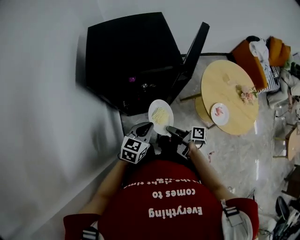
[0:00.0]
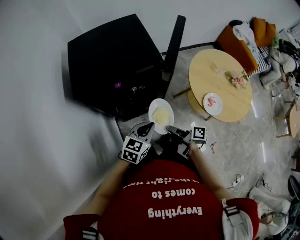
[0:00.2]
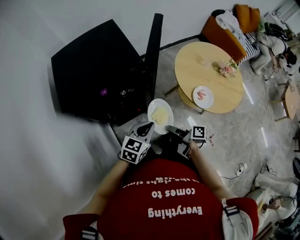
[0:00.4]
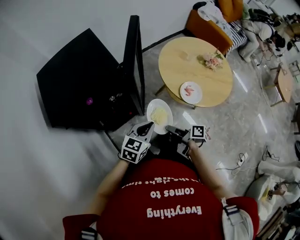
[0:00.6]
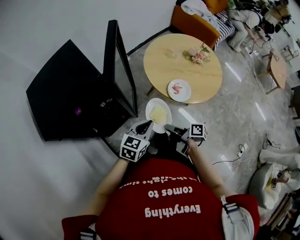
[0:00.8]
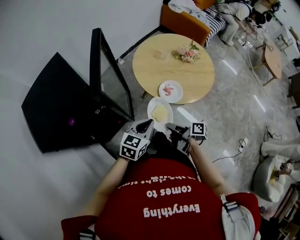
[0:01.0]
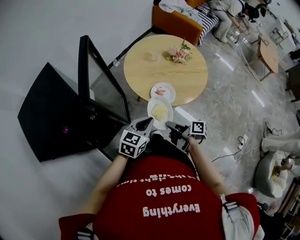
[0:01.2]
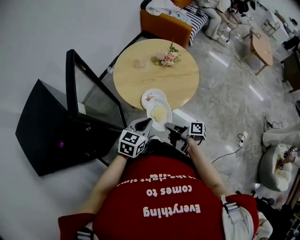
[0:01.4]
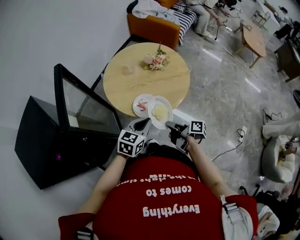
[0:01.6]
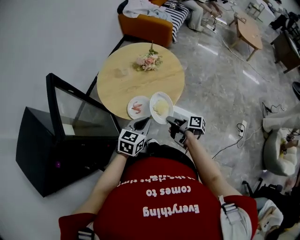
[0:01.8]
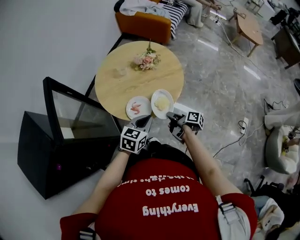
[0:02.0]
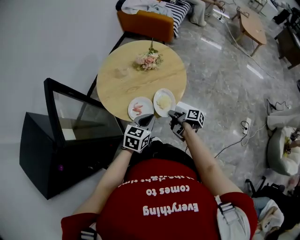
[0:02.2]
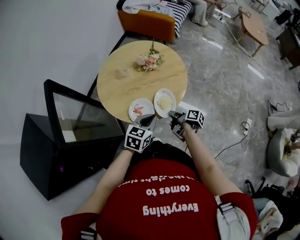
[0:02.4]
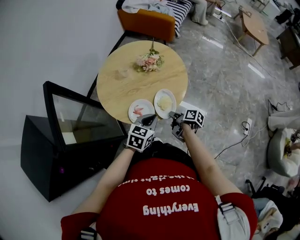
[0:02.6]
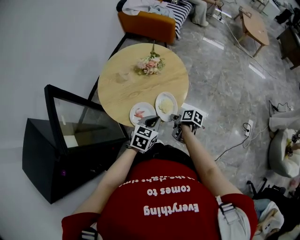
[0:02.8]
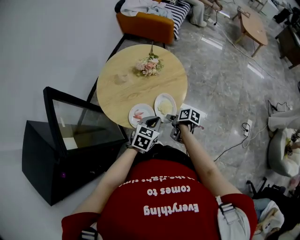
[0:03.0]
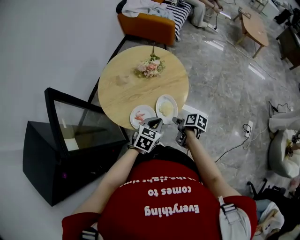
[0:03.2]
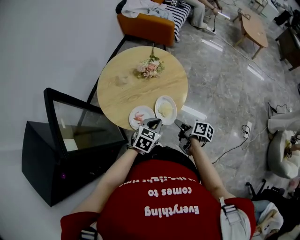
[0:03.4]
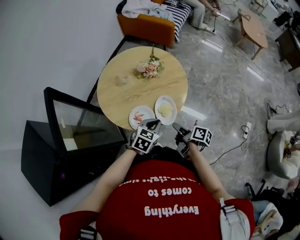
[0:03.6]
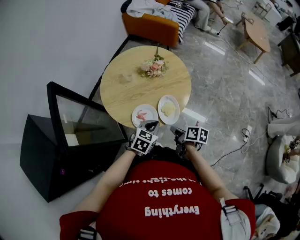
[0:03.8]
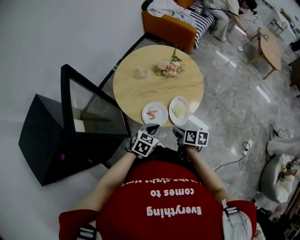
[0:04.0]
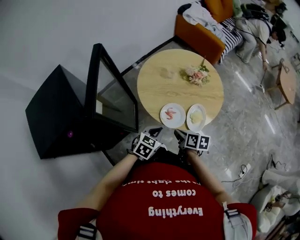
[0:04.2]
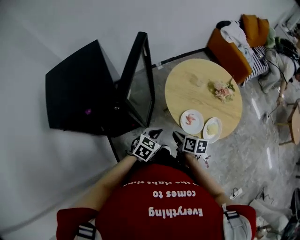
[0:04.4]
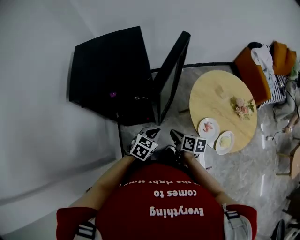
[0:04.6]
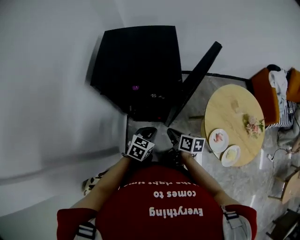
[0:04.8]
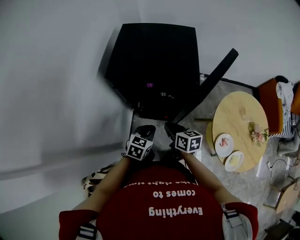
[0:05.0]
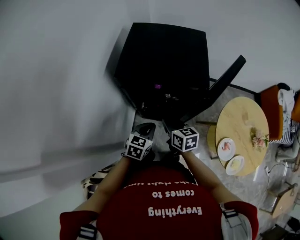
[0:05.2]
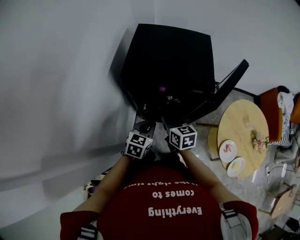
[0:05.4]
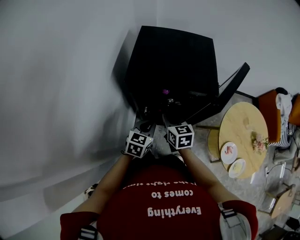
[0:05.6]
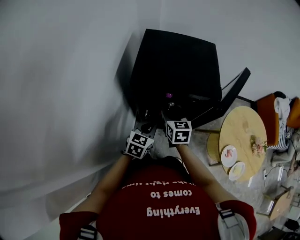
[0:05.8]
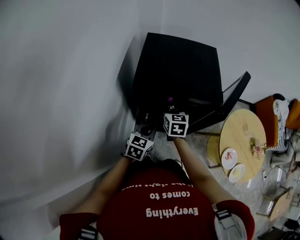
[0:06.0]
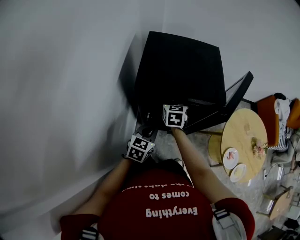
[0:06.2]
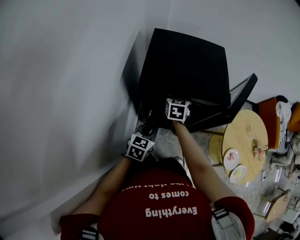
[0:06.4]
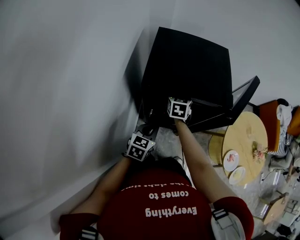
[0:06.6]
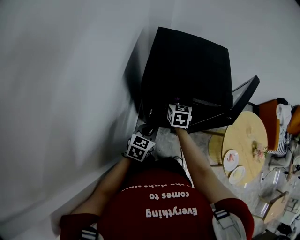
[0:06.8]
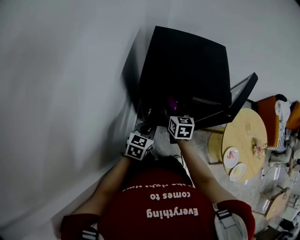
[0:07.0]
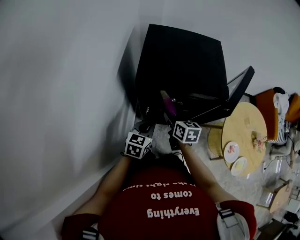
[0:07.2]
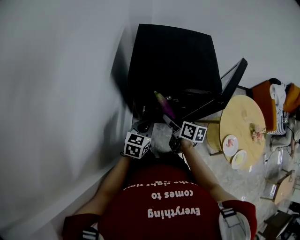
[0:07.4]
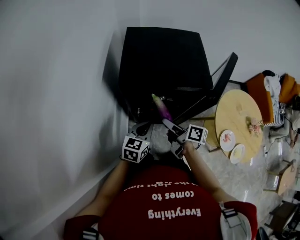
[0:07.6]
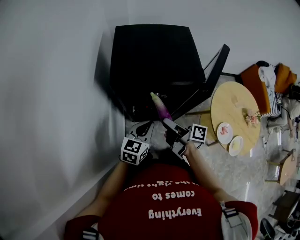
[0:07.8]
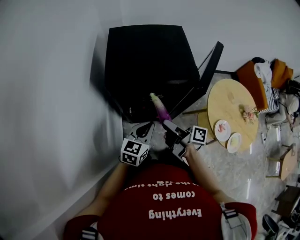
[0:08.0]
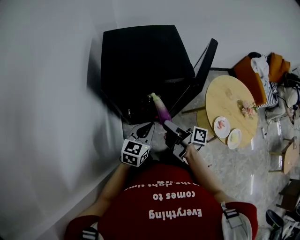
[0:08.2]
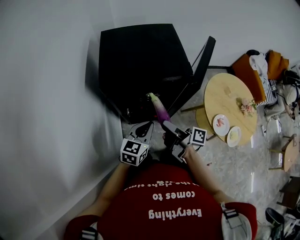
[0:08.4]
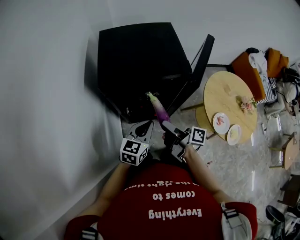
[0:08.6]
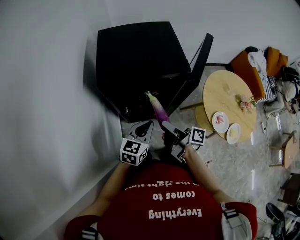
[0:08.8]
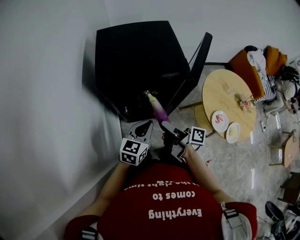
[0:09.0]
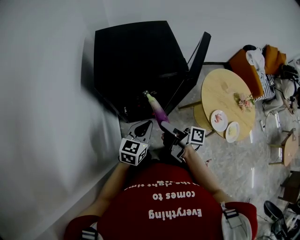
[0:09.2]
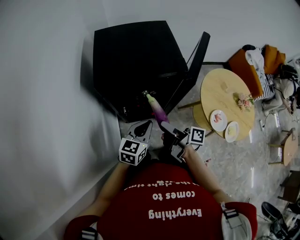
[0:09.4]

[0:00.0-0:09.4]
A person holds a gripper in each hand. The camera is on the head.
0:00.0 to 0:01.6: The left gripper ends up approximately 40 cm from where it was, and swivels some 50 degrees.
0:01.6 to 0:03.2: The left gripper changes place by roughly 15 cm.
0:03.2 to 0:04.8: The left gripper moves roughly 50 cm, and swivels about 70 degrees.
0:04.8 to 0:06.2: The left gripper ends up some 20 cm from where it was.
0:06.2 to 0:07.8: The left gripper changes place by roughly 5 cm.

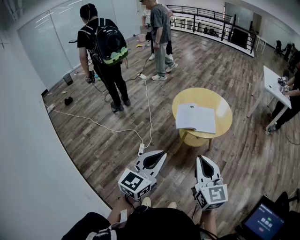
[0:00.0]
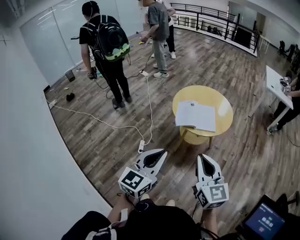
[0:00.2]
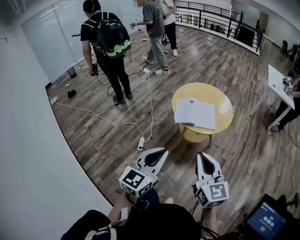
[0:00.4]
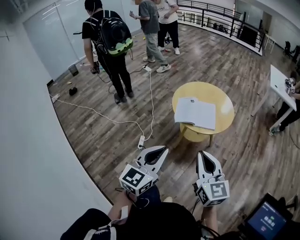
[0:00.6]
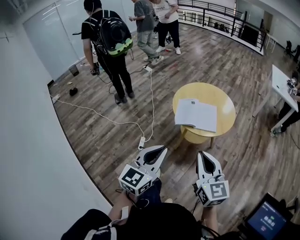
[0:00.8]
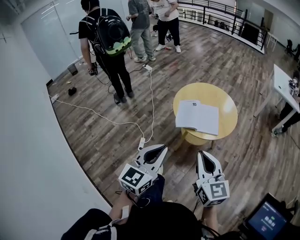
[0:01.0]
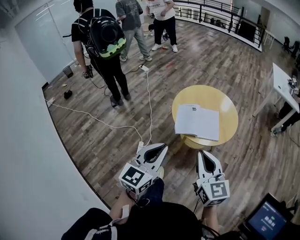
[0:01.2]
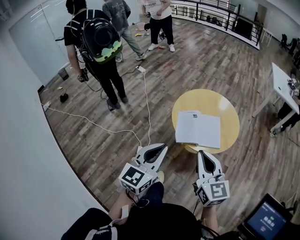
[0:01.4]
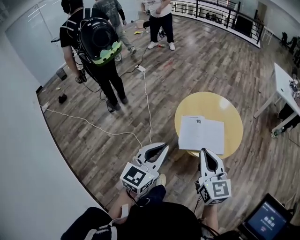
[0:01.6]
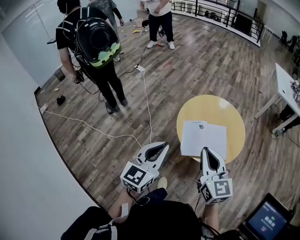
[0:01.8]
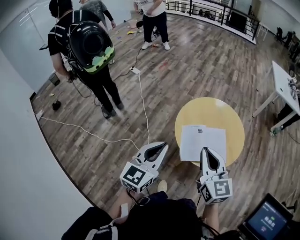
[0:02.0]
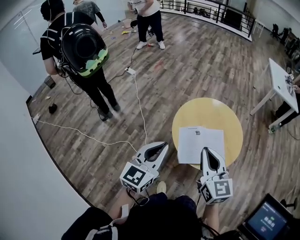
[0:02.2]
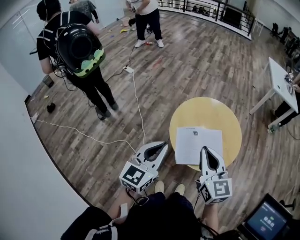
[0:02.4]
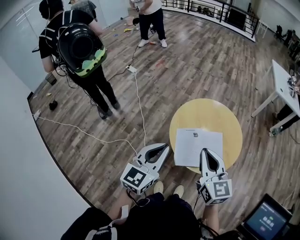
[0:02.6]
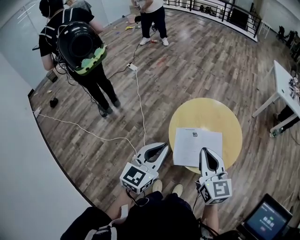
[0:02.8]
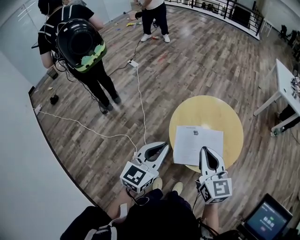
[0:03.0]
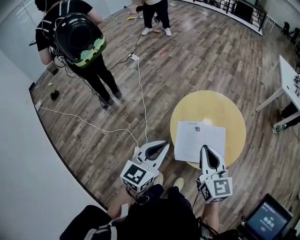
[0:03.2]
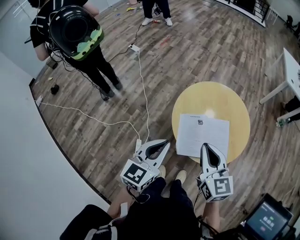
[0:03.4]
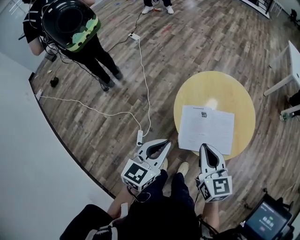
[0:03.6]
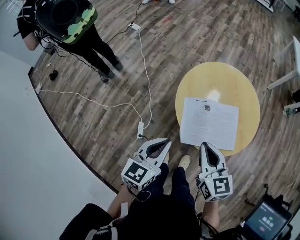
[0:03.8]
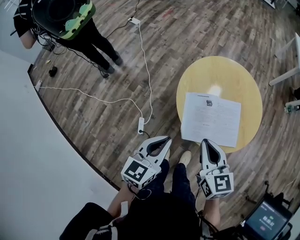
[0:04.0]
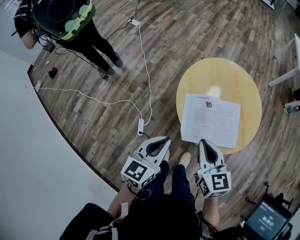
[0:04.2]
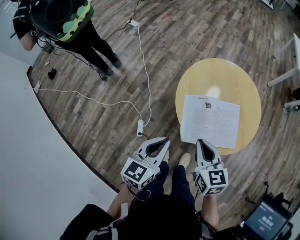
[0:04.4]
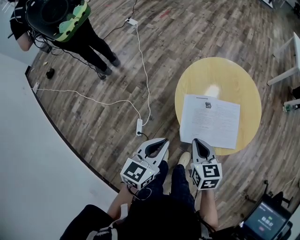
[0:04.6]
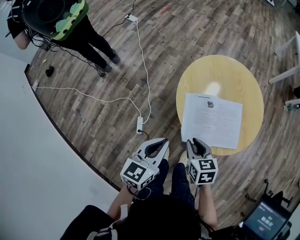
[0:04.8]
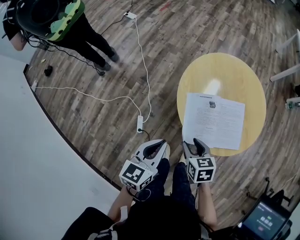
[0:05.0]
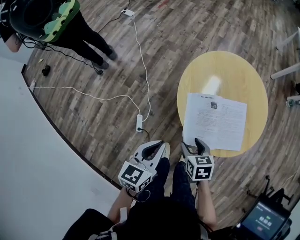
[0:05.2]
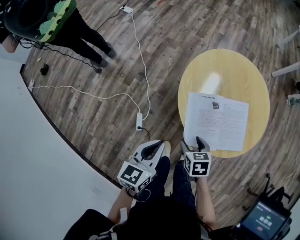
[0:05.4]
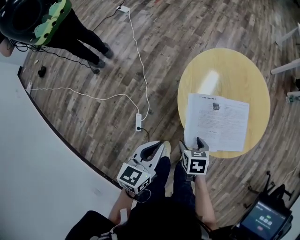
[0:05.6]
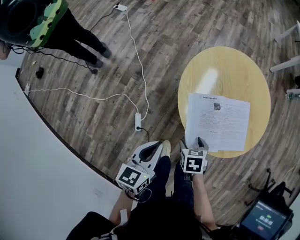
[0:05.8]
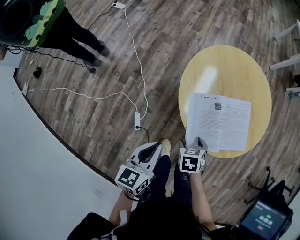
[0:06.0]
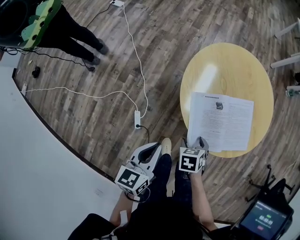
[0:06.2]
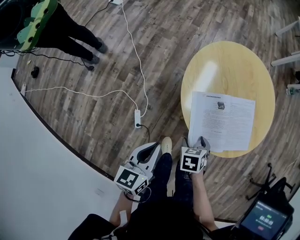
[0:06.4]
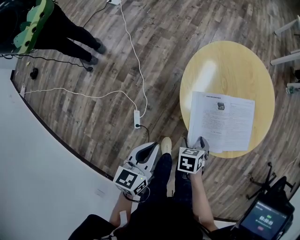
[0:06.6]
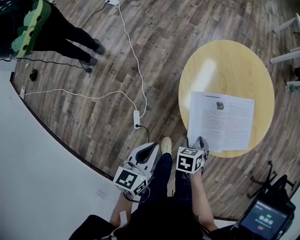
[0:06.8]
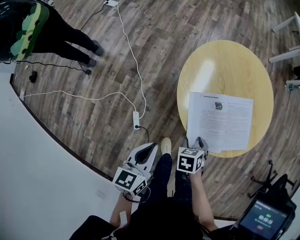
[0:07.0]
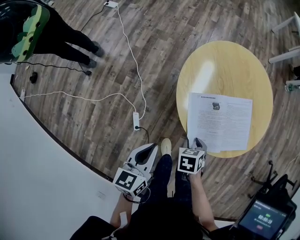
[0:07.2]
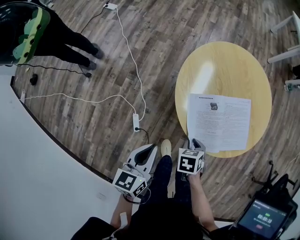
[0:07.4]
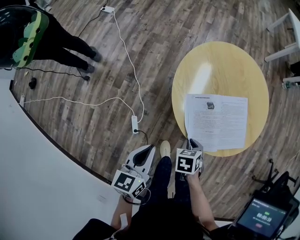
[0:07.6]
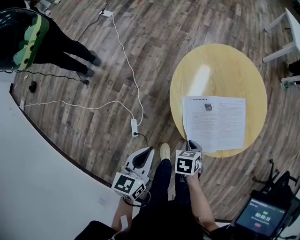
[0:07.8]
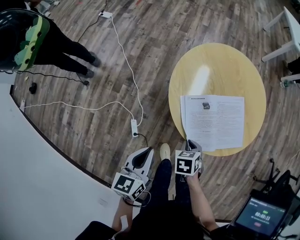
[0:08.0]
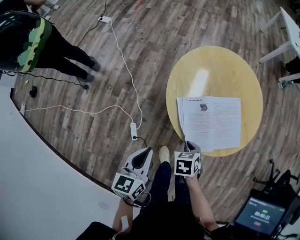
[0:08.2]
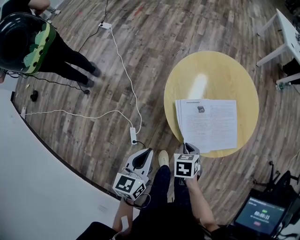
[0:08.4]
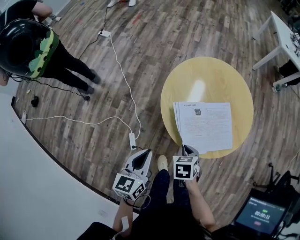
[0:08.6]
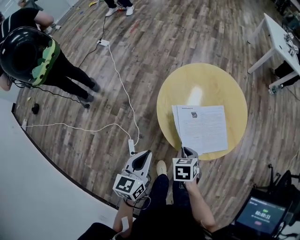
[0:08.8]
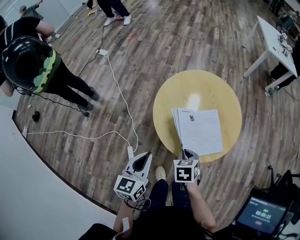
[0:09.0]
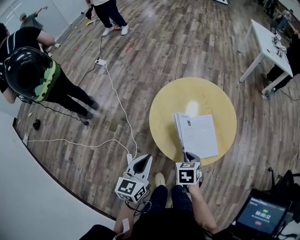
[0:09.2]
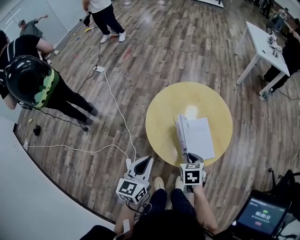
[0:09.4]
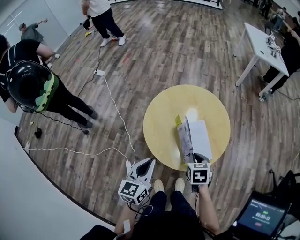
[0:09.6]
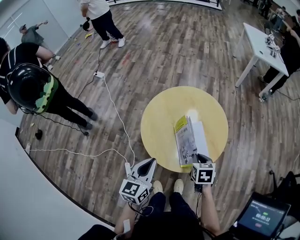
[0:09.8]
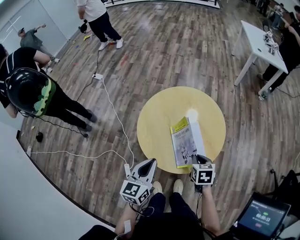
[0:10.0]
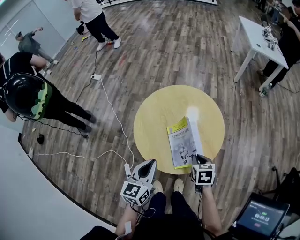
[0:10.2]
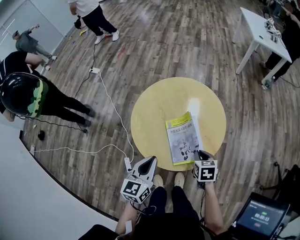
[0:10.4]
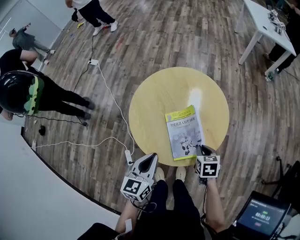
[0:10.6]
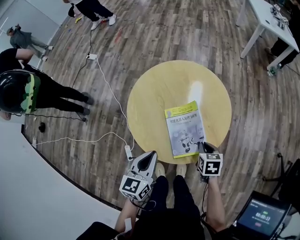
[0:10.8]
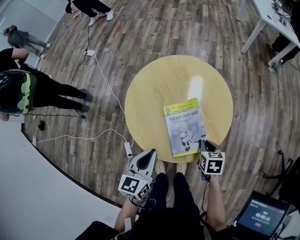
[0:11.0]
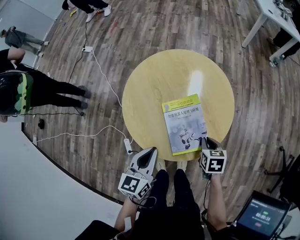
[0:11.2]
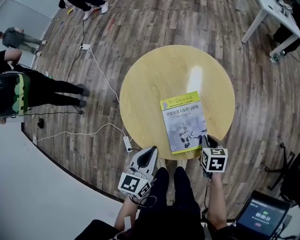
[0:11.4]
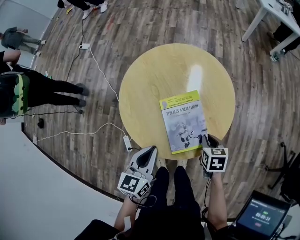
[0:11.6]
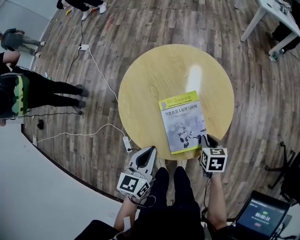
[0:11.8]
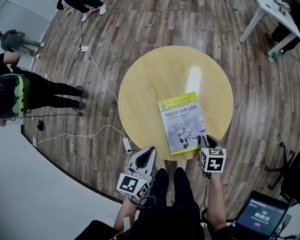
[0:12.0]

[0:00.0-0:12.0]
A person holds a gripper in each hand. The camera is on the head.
0:00.0 to 0:01.6: Both grippers travel together forward, some 25 cm.
0:01.6 to 0:03.0: Both grippers travel together forward, approximately 15 cm.
0:03.0 to 0:04.4: The grippers both shift downward by approximately 15 cm. The right gripper swivels roughly 20 degrees.
0:04.4 to 0:06.0: The left gripper heads downward and to the left, covering about 10 cm. The right gripper shifts about 20 cm downward, tilts its fingers some 40 degrees downward, and opens its fingers.
0:06.0 to 0:07.6: The right gripper closes up.
0:07.6 to 0:09.0: Both grippers move upward, approximately 10 cm.
0:09.0 to 0:10.4: The grippers both shift to the right by about 15 cm.
0:10.4 to 0:12.0: The grippers both shift downward by approximately 5 cm.

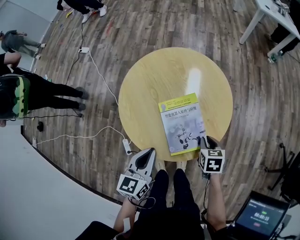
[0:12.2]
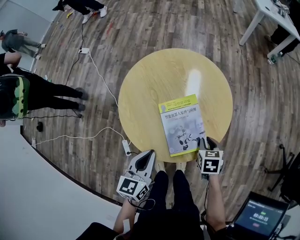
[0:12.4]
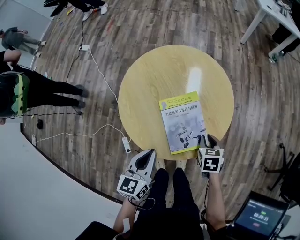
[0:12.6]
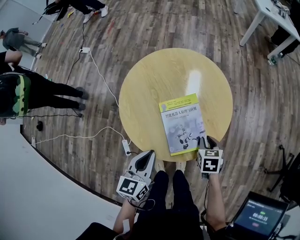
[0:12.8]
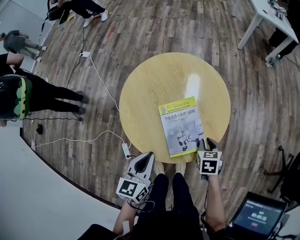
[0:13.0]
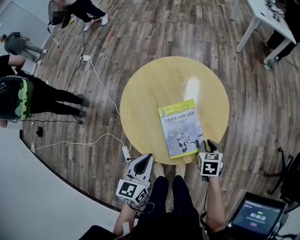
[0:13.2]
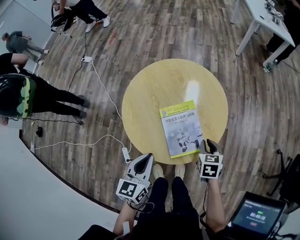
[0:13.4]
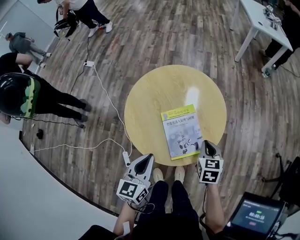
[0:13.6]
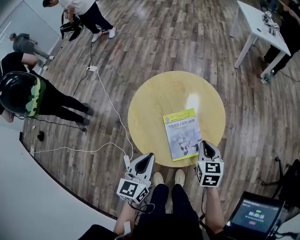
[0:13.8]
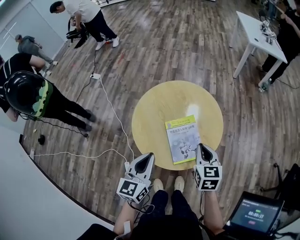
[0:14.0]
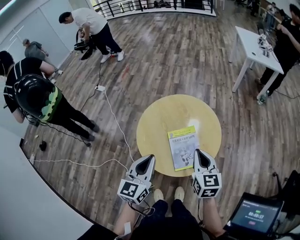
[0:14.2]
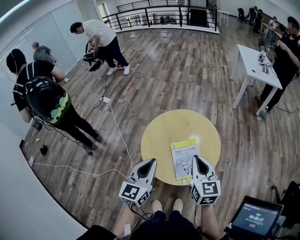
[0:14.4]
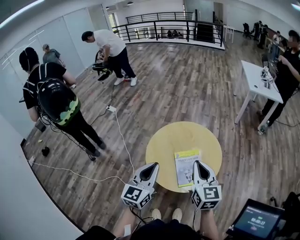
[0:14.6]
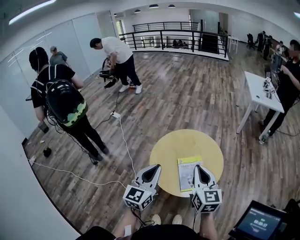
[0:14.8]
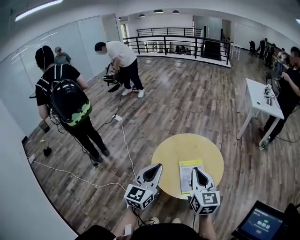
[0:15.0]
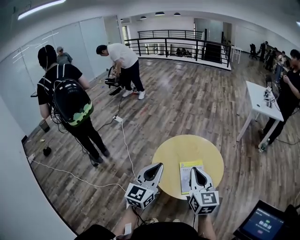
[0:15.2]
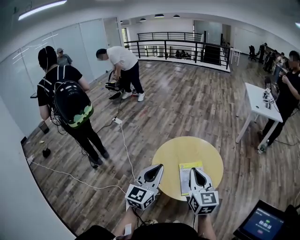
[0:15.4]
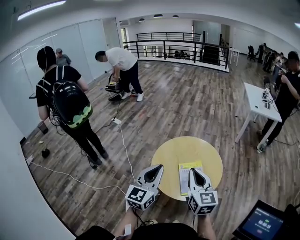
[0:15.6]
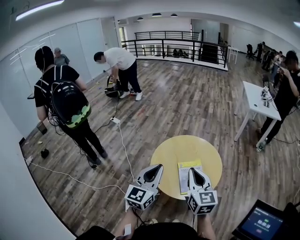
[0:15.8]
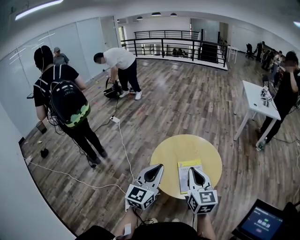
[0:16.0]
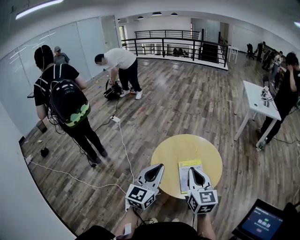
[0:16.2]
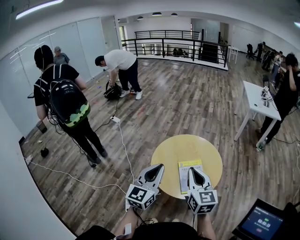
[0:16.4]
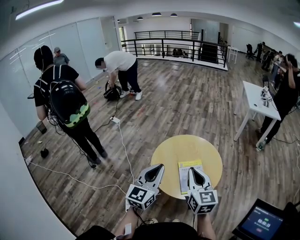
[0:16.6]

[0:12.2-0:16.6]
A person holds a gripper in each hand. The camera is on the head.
0:12.2 to 0:13.6: The right gripper moves upward, approximately 10 cm.
0:13.6 to 0:15.2: The right gripper heads upward and to the left, covering some 35 cm, and tilts its fingers about 40 degrees upward; the left gripper shifts approximately 25 cm upward, and rotates some 30 degrees.
0:15.2 to 0:16.6: Both grippers stay about where they are.
